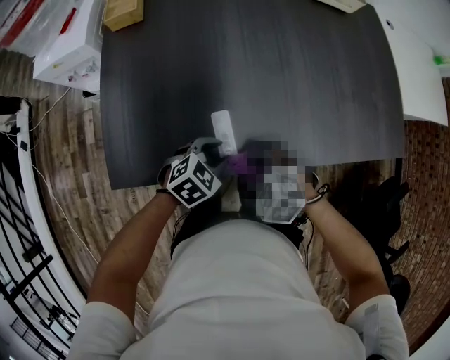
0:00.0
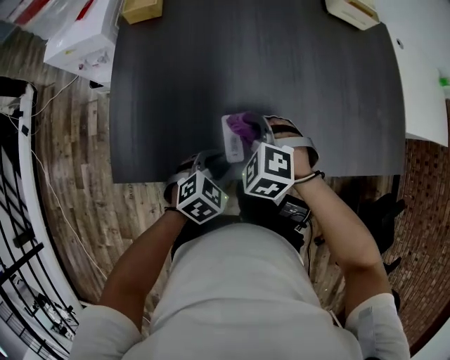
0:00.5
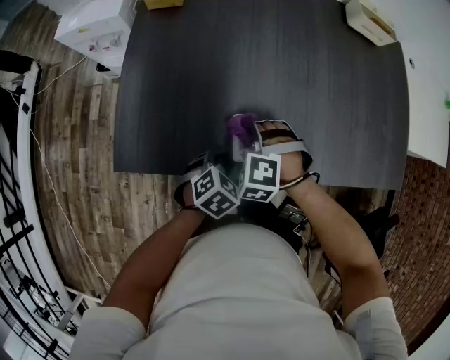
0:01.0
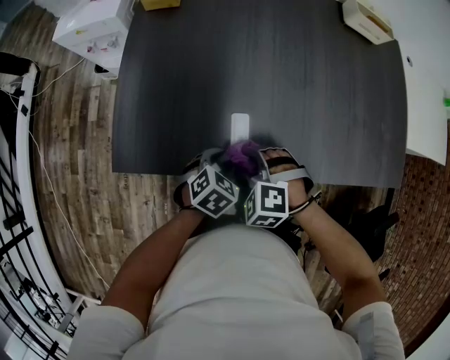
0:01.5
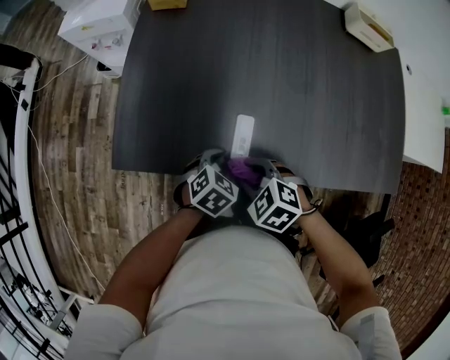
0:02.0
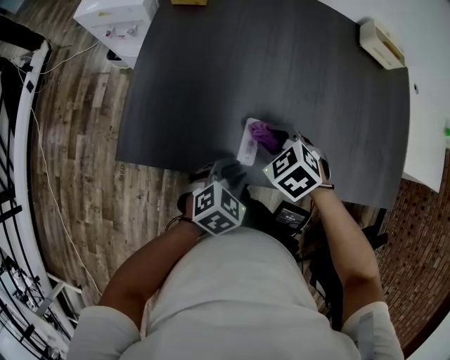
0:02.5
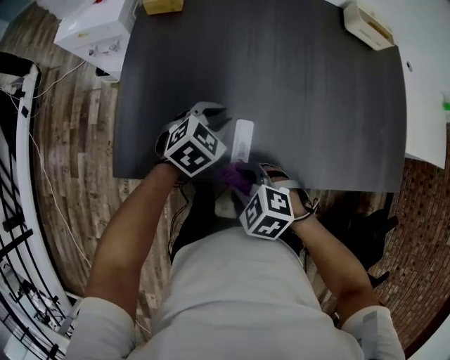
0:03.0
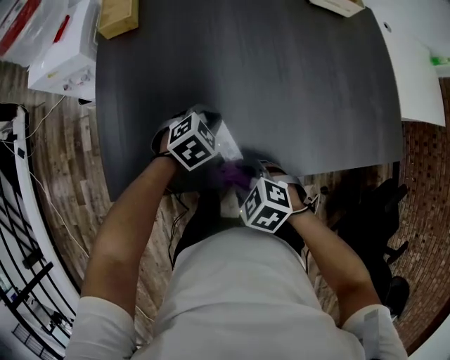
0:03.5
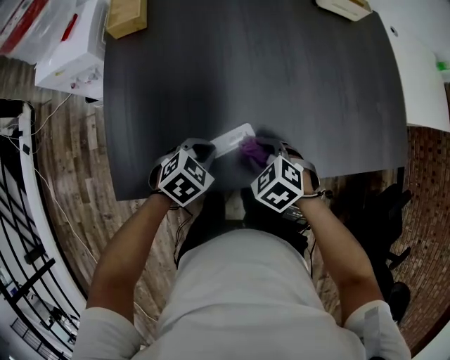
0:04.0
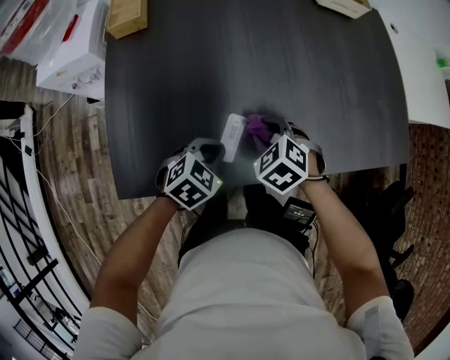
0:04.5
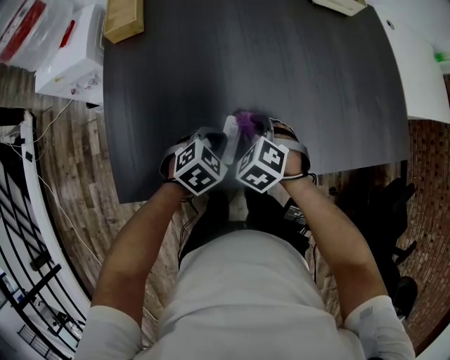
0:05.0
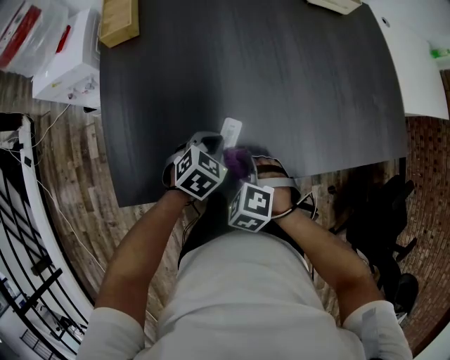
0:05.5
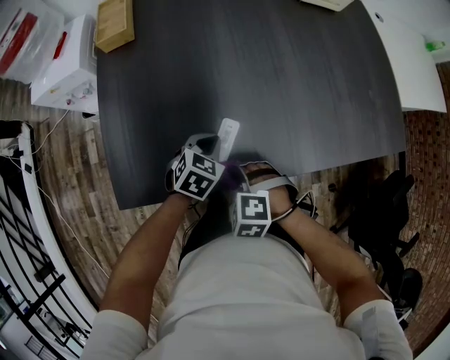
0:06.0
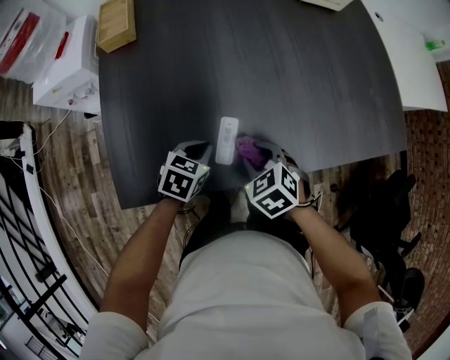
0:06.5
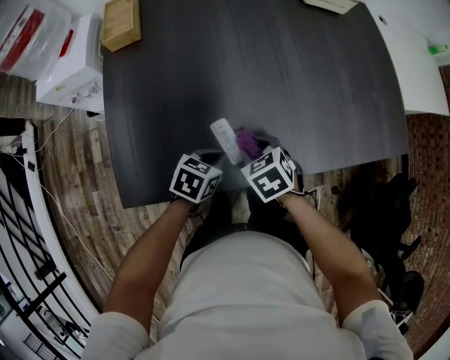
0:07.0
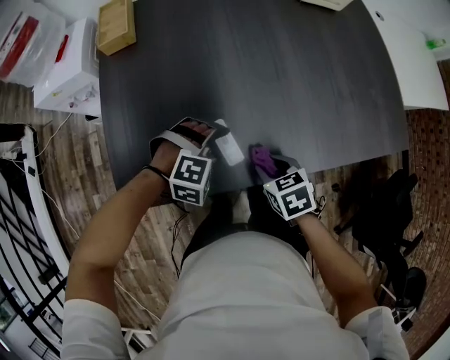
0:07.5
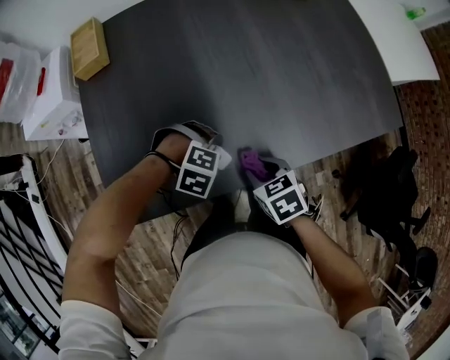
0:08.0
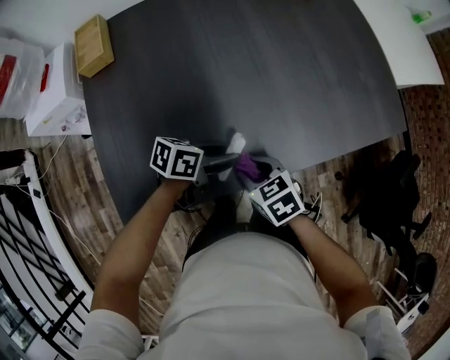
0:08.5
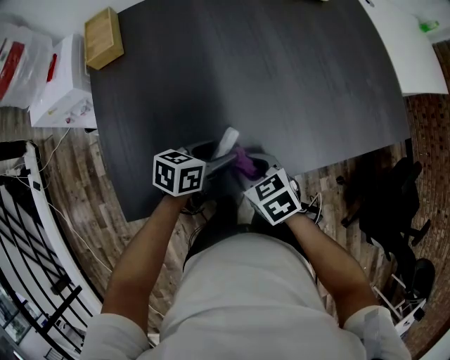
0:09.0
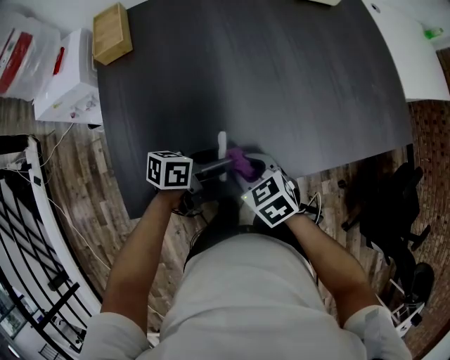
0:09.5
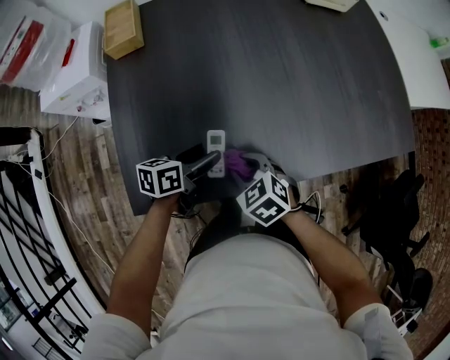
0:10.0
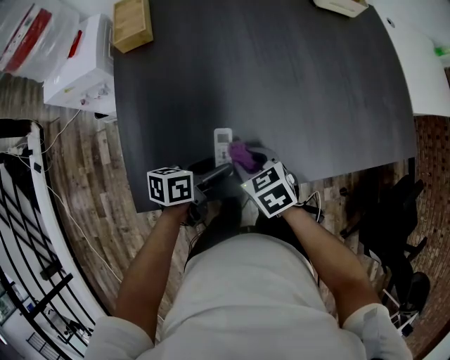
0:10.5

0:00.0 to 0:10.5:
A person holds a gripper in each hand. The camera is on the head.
0:00.0 to 0:02.0: The left gripper rotates some 20 degrees.
0:02.0 to 0:04.0: The right gripper swings forward and backward, roughly 10 cm each way, with 2 reversals, and swivels some 20 degrees; the left gripper travels forward by about 5 cm, and closes its fingers.
0:04.0 to 0:06.5: The right gripper swings forward and backward, about 15 cm each way, with 2 reversals.
0:06.5 to 0:08.5: The left gripper changes place by approximately 10 cm, changes its angle by about 40 degrees, and opens. The right gripper turns by some 20 degrees.
0:08.5 to 0:10.5: The left gripper changes place by approximately 10 cm, and rotates roughly 30 degrees; the right gripper ends up approximately 10 cm from where it was.

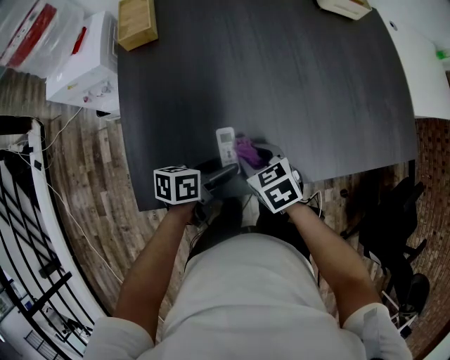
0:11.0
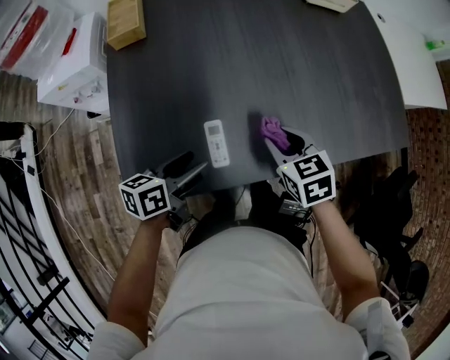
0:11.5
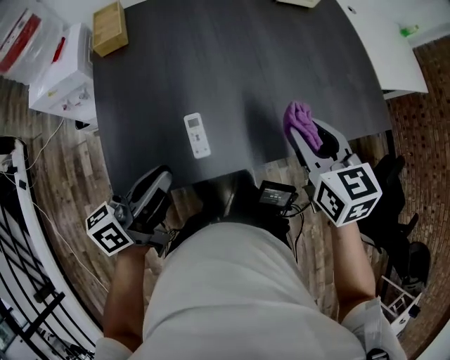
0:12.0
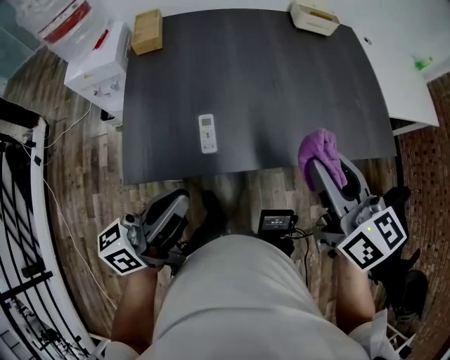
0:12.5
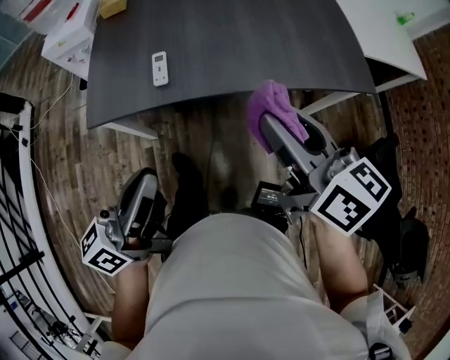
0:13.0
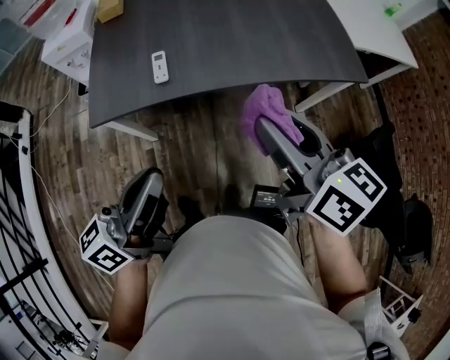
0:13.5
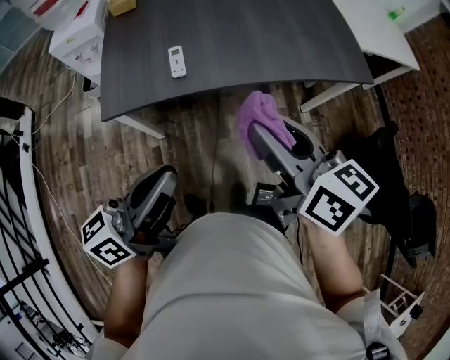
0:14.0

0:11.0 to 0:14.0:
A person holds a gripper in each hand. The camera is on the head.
0:11.0 to 0:12.5: The right gripper shifts about 35 cm upward and to the right, and tips its fingers upward by about 40 degrees, while the left gripper is displaced upward and backward by some 30 cm, tilts its fingers some 40 degrees upward, and closes.
0:12.5 to 0:14.0: The grippers both shift backward by about 15 cm.

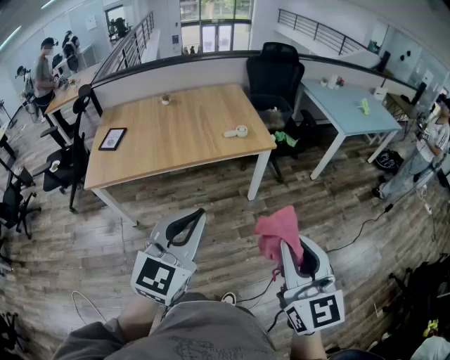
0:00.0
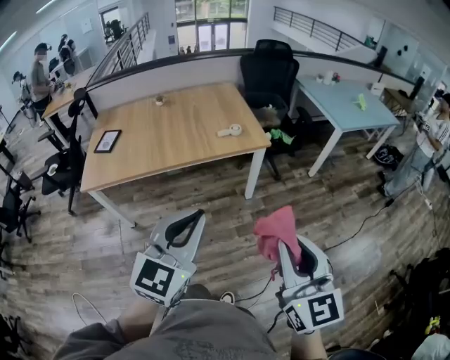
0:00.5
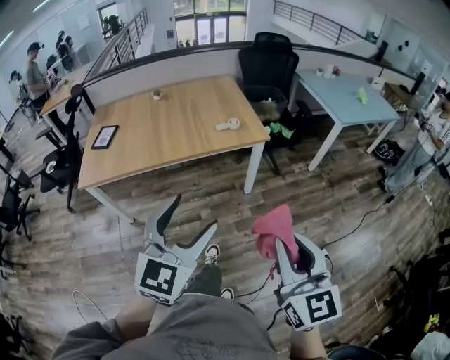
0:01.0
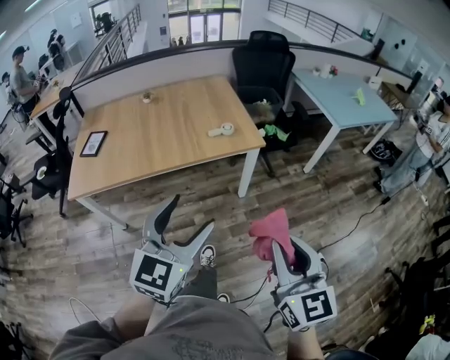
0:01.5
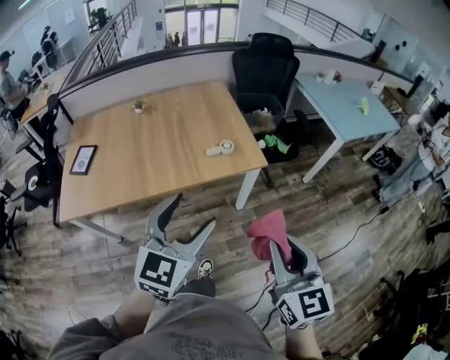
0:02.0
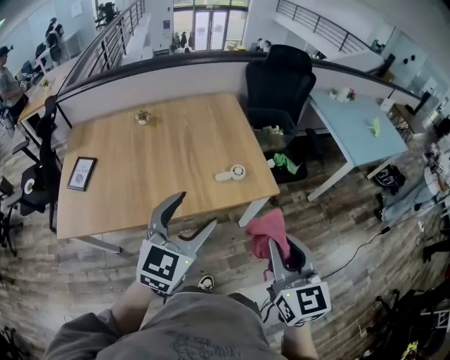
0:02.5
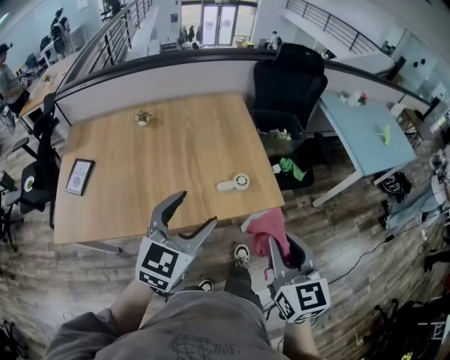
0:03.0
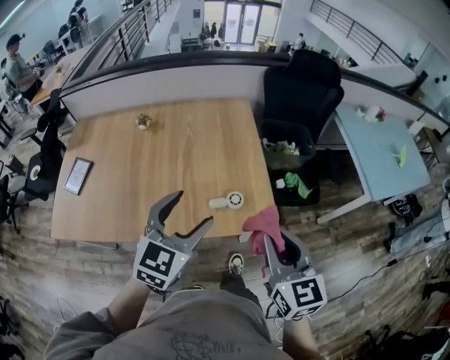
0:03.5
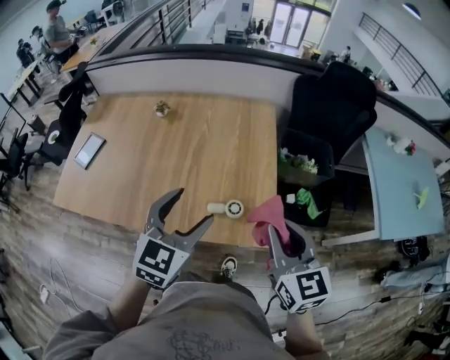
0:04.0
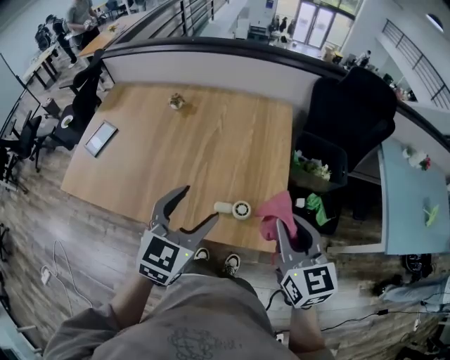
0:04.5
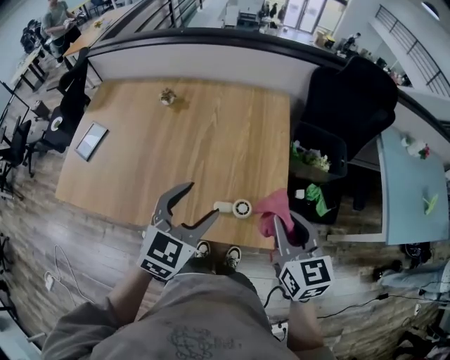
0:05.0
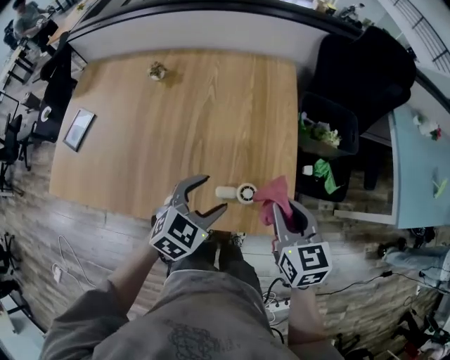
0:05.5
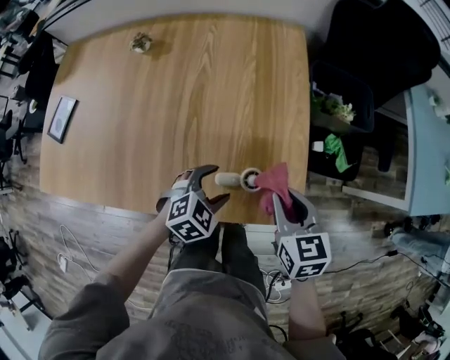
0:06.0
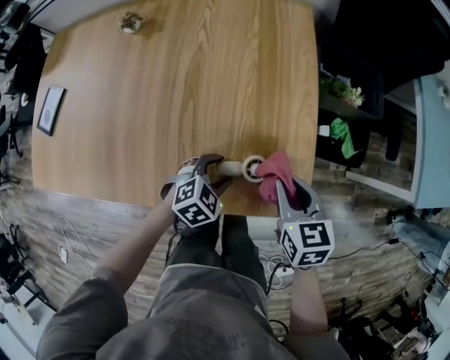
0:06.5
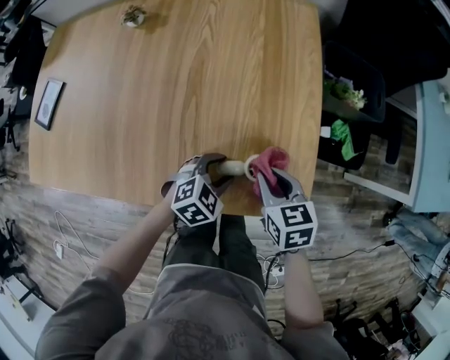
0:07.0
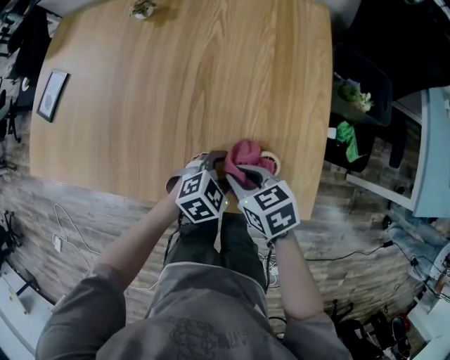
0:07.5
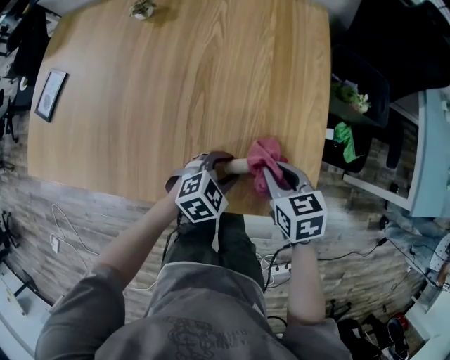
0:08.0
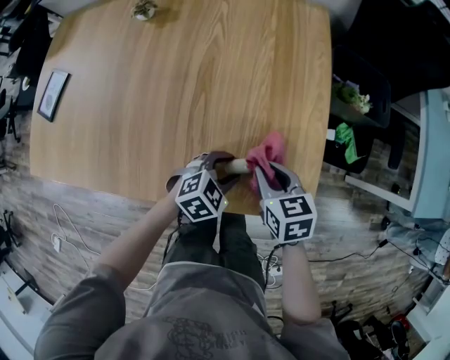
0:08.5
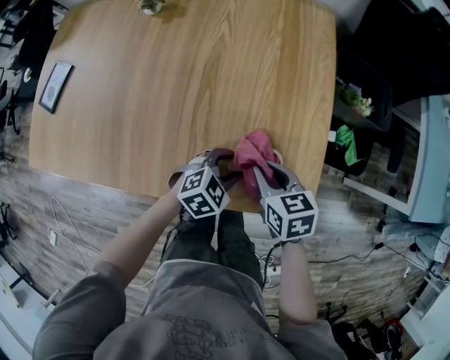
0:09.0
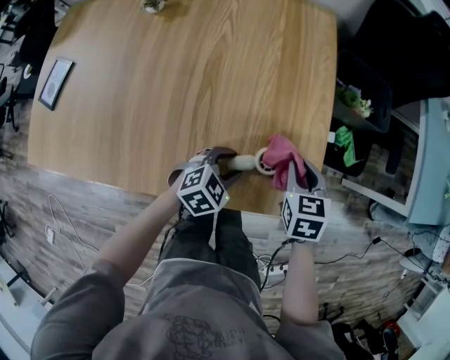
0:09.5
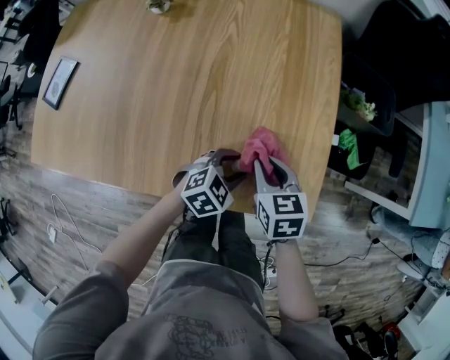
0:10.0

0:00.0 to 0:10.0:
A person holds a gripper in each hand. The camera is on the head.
0:00.0 to 0:02.0: The grippers both shift forward by roughly 25 cm. The left gripper opens its fingers.
0:02.0 to 0:04.0: The two grippers go some 40 cm forward. The left gripper rotates about 20 degrees, while the right gripper changes its angle by some 30 degrees.
0:04.0 to 0:06.0: The right gripper shifts roughly 25 cm downward and forward, and swivels about 20 degrees, while the left gripper goes some 30 cm downward, and angles its fingers downward, by about 30 degrees.
0:06.0 to 0:08.0: The two grippers go some 10 cm downward. The right gripper moves about 15 cm to the left and comes back. Meanwhile the left gripper closes up.

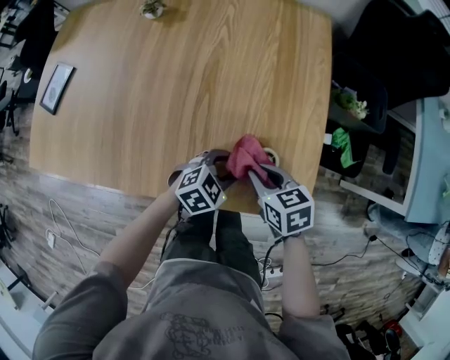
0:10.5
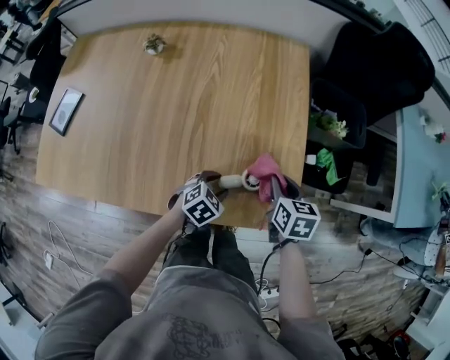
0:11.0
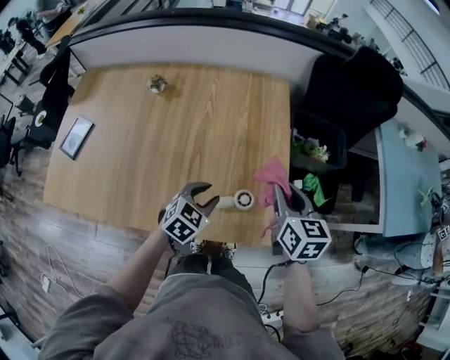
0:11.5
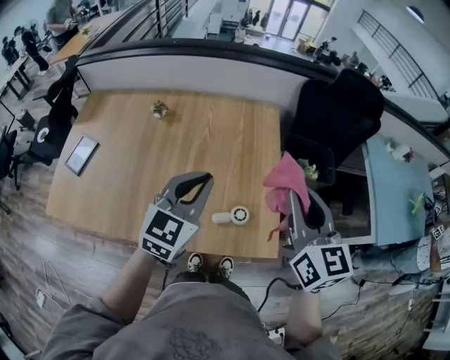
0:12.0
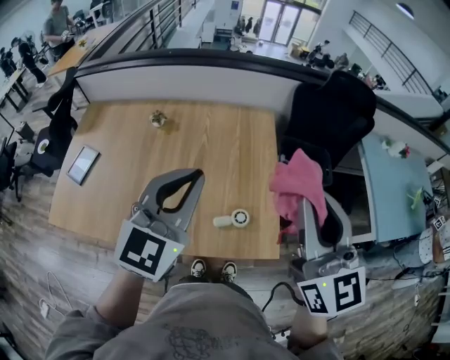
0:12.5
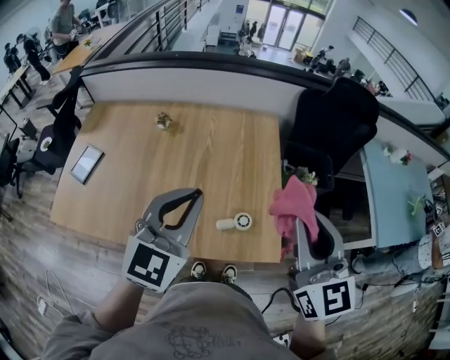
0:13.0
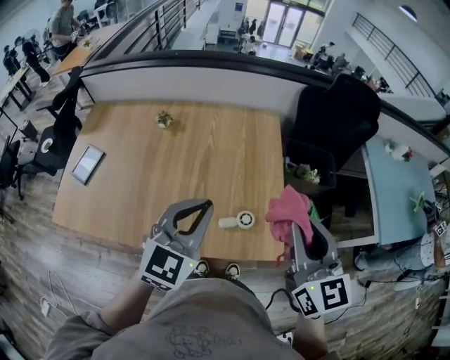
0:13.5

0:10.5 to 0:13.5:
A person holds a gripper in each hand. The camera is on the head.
0:10.5 to 0:12.0: Both grippers move upward, approximately 40 cm. The left gripper tips its fingers upward by about 40 degrees, and closes up, while the right gripper angles its fingers upward, by some 40 degrees.
0:12.0 to 0:13.5: The grippers both shift backward by approximately 5 cm. The left gripper moves approximately 10 cm upward and comes back; the right gripper reaches approximately 10 cm upward, then returns.
